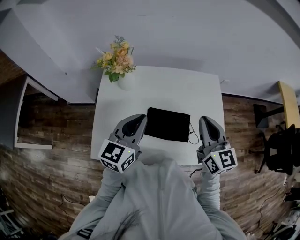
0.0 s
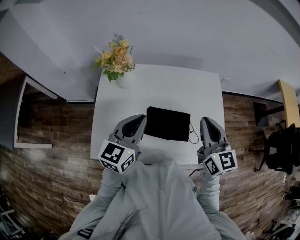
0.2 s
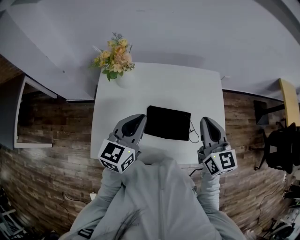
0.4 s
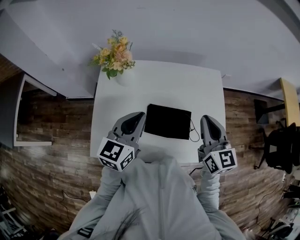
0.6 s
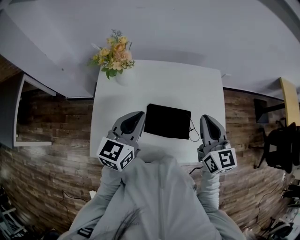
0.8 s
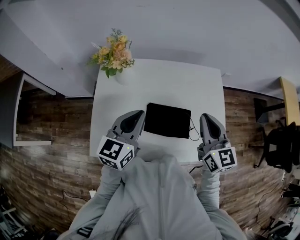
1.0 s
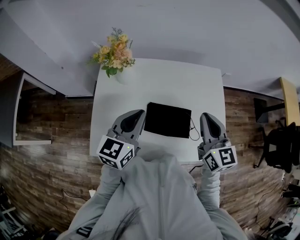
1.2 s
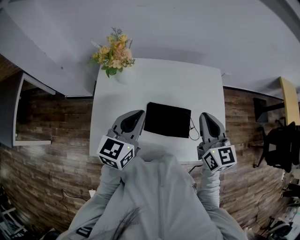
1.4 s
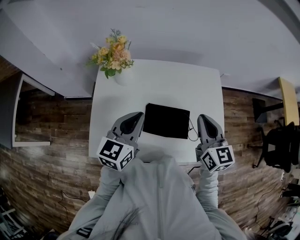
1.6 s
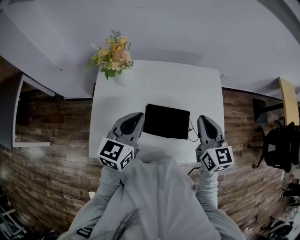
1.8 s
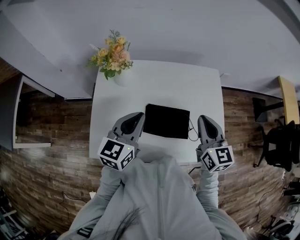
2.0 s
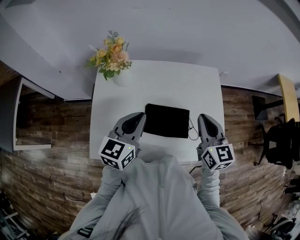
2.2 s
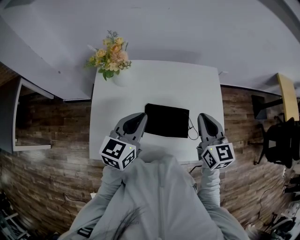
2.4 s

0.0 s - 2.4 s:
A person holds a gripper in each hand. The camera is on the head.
0.0 s - 2.4 s: There are only small adjustments of the grippers.

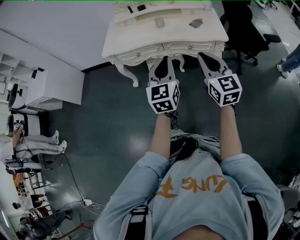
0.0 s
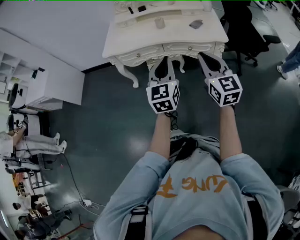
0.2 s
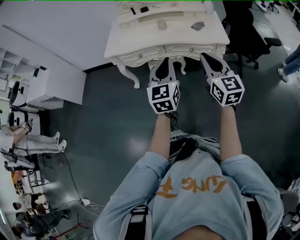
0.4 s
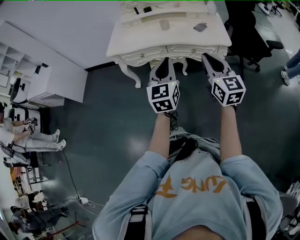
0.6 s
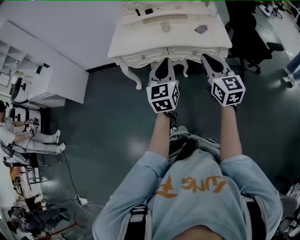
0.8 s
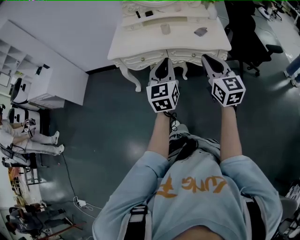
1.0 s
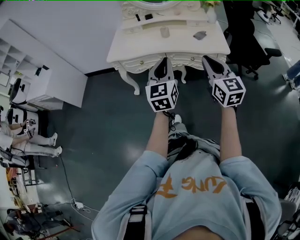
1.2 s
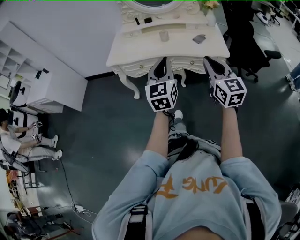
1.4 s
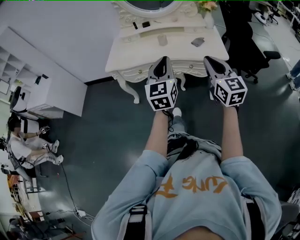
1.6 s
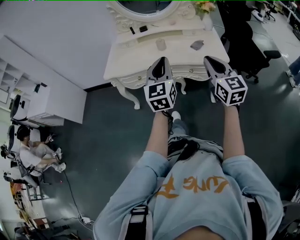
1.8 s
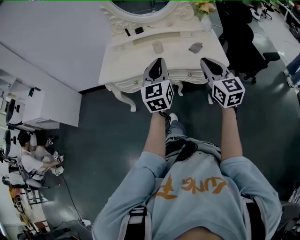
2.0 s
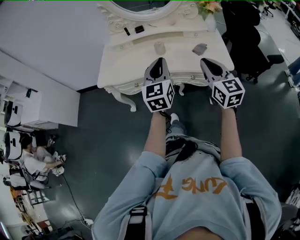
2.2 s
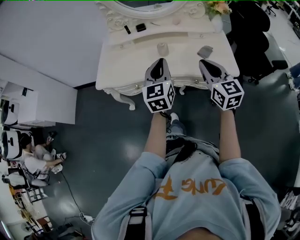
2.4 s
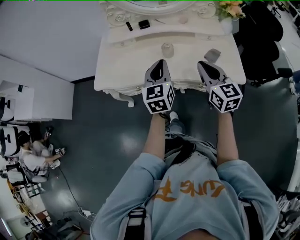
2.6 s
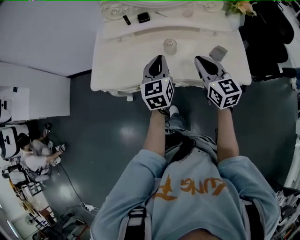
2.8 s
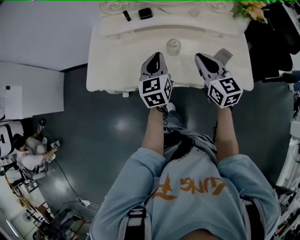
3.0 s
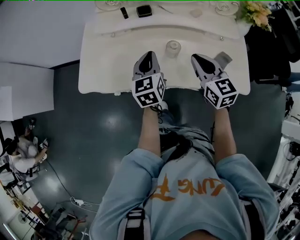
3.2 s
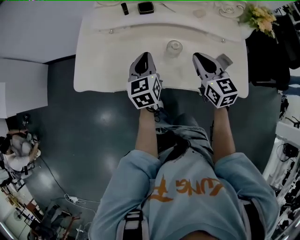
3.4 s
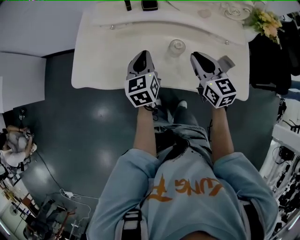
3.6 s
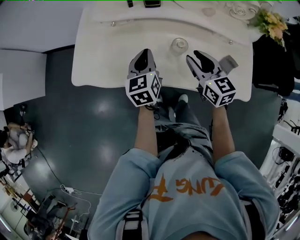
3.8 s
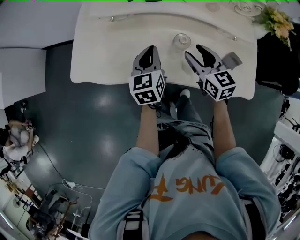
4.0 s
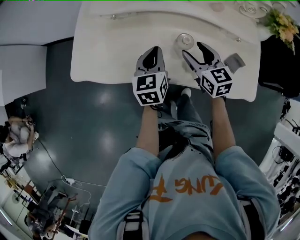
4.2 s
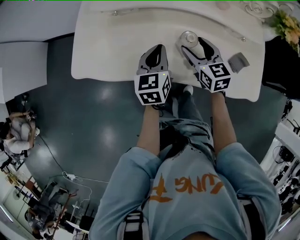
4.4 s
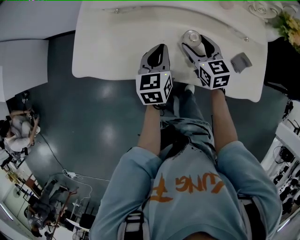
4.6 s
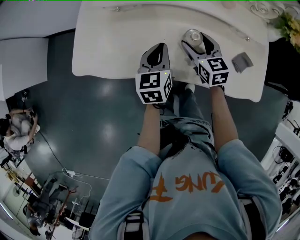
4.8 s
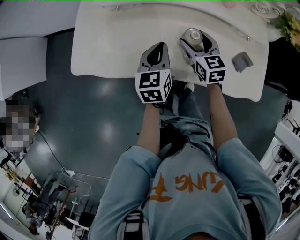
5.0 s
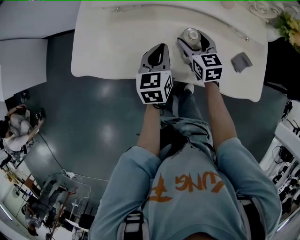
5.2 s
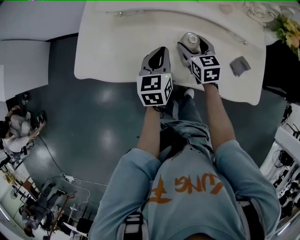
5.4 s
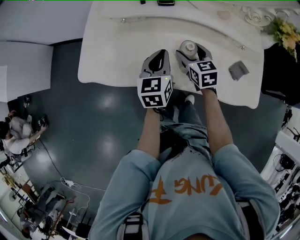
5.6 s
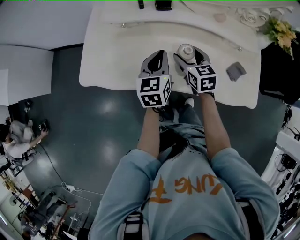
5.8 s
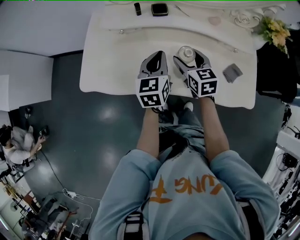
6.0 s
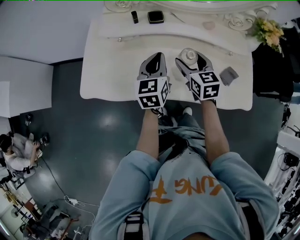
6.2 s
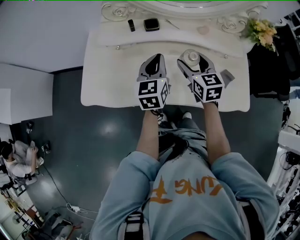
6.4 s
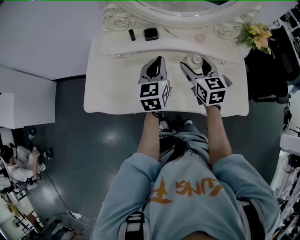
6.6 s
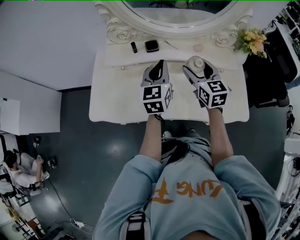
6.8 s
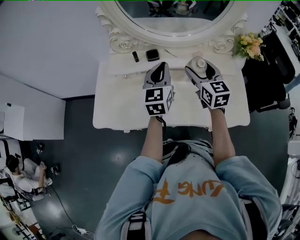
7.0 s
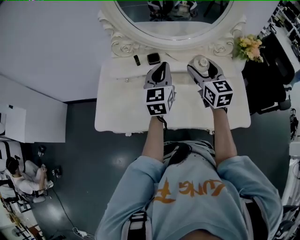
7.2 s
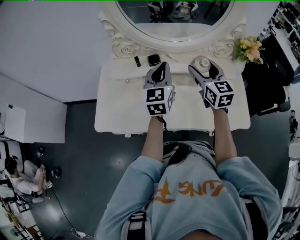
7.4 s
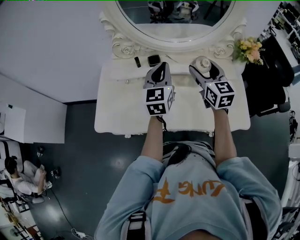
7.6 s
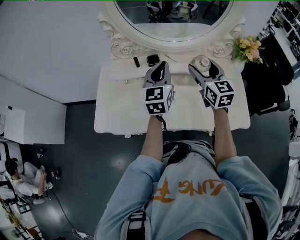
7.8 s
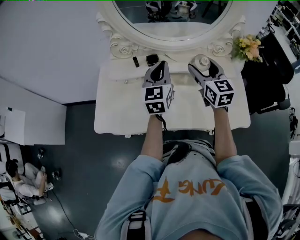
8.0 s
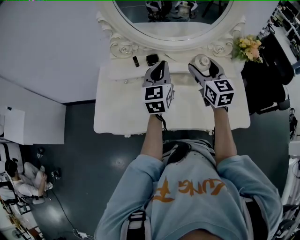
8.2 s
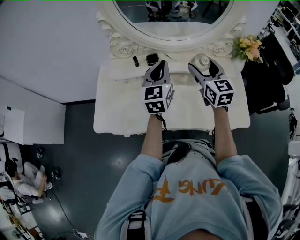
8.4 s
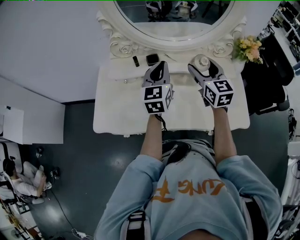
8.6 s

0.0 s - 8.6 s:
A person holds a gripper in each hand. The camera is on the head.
0.0 s - 1.4 s: The grippers stay close to where they were, moving slightly.
1.4 s - 2.8 s: Both grippers move forward, approximately 35 cm.
2.8 s - 4.4 s: The right gripper goes roughly 25 cm forward and downward, and opens up; the left gripper heads downward and forward, covering about 15 cm.
4.4 s - 5.8 s: The grippers make only small movements.
5.8 s - 7.2 s: The right gripper travels upward and to the right by roughly 25 cm, and turns by about 30 degrees. Meanwhile the left gripper goes some 15 cm upward and forward, and rotates roughly 20 degrees.
7.2 s - 8.6 s: The grippers make only small movements.

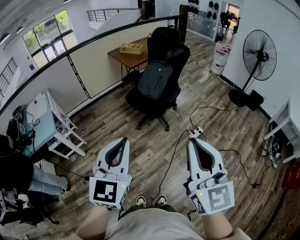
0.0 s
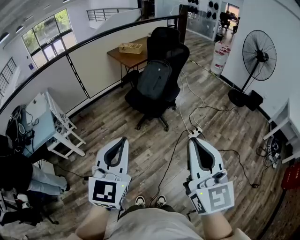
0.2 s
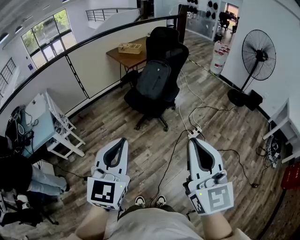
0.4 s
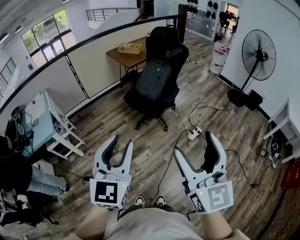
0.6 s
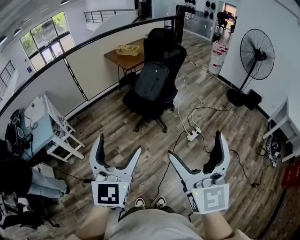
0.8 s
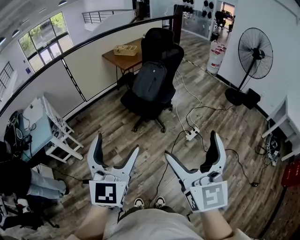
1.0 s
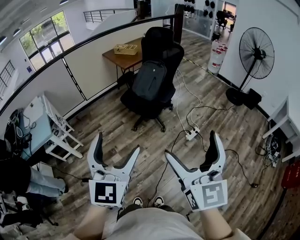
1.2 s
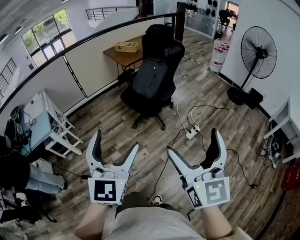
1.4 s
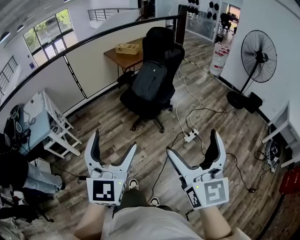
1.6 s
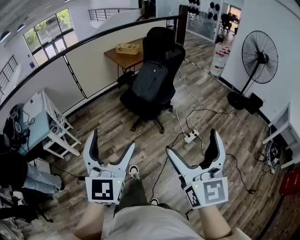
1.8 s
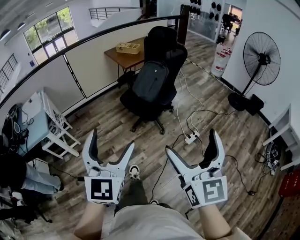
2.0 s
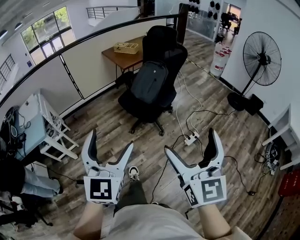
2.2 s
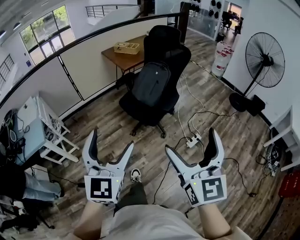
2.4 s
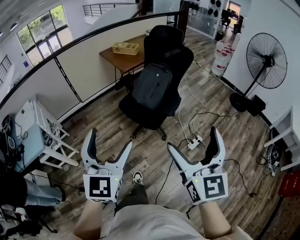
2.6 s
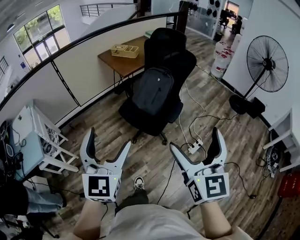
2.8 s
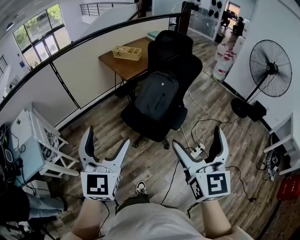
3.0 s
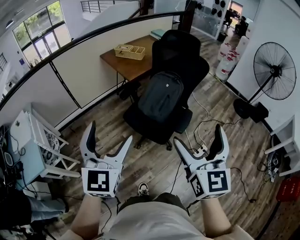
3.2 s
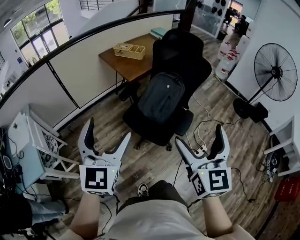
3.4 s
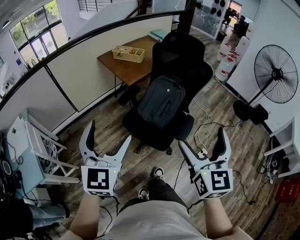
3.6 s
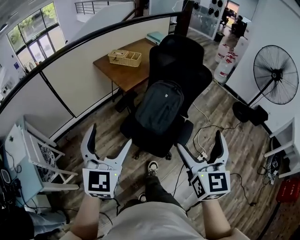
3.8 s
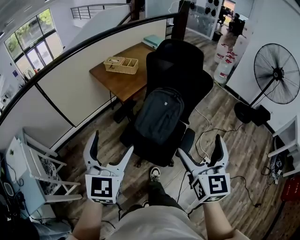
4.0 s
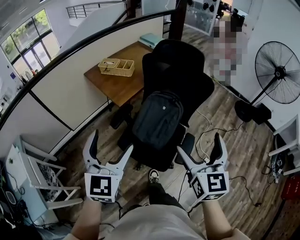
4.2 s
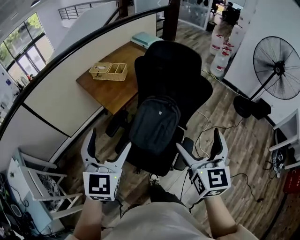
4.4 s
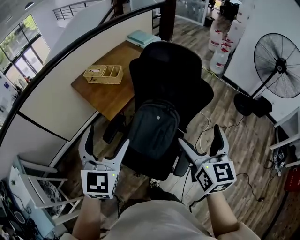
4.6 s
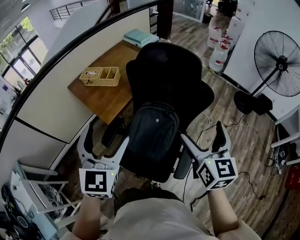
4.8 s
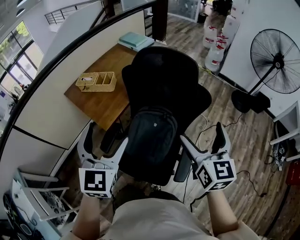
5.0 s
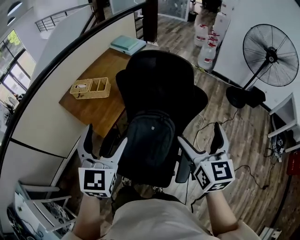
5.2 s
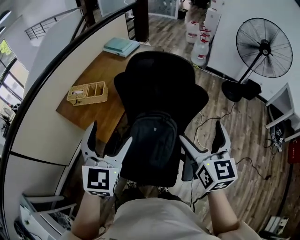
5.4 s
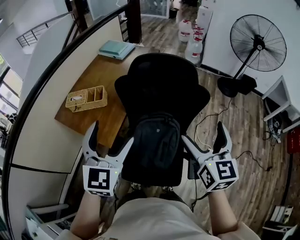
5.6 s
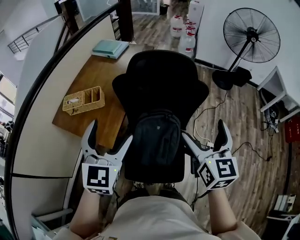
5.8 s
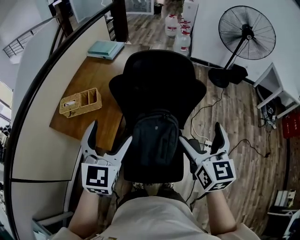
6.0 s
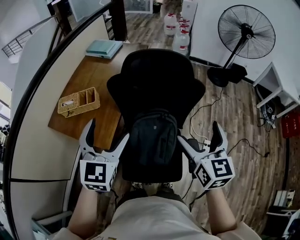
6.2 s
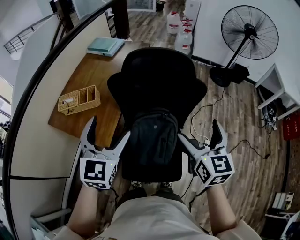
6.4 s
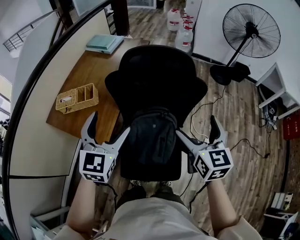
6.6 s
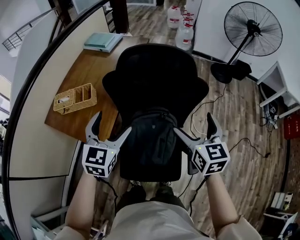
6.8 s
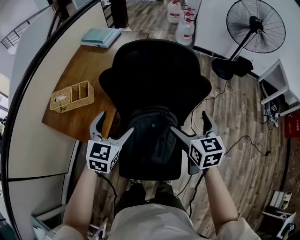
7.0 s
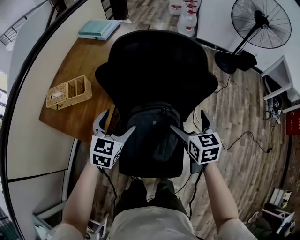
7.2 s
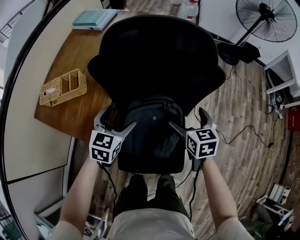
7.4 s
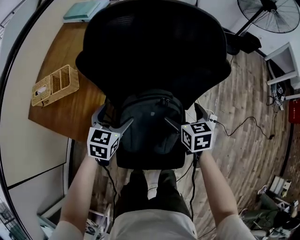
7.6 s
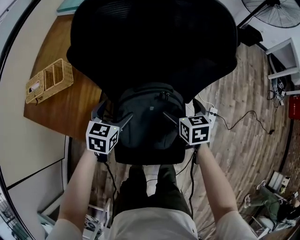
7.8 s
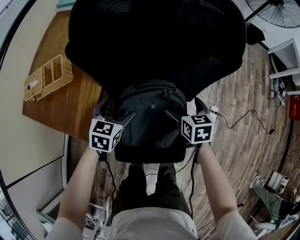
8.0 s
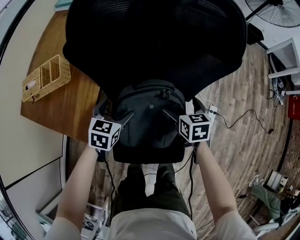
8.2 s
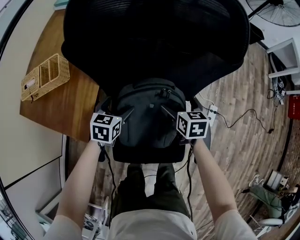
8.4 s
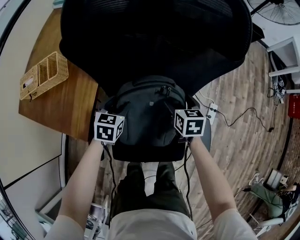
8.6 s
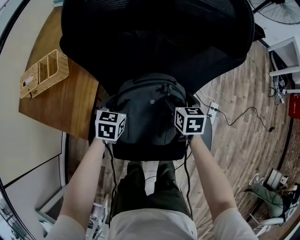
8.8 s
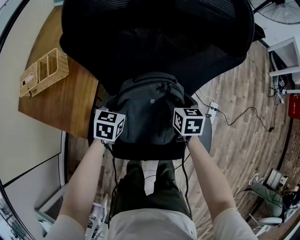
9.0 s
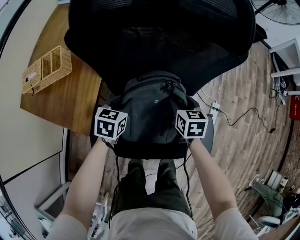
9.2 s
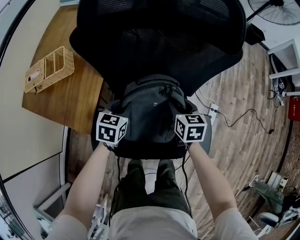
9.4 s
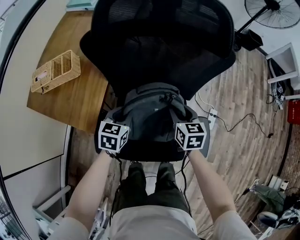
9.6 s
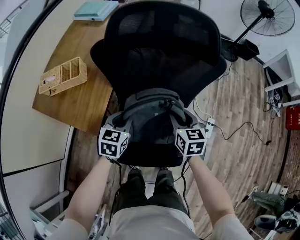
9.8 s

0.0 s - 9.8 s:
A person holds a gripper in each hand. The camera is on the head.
0.0 s - 1.4 s: The right gripper travels to the right by about 5 cm, and opens. The left gripper opens.
1.4 s - 2.8 s: Both grippers move forward, about 30 cm.
2.8 s - 4.2 s: The two grippers go about 40 cm forward.
4.2 s - 5.6 s: Both grippers move forward, approximately 30 cm. The left gripper turns by some 20 degrees, while the right gripper rotates some 20 degrees.
5.6 s - 7.0 s: Both grippers travel together downward and forward, roughly 20 cm.
7.0 s - 8.4 s: Both grippers move downward, approximately 30 cm. The left gripper changes its angle by roughly 30 degrees; the right gripper rotates approximately 20 degrees.
8.4 s - 9.8 s: Both grippers travel together upward and backward, about 15 cm. The right gripper closes up. Meanwhile the left gripper closes up.

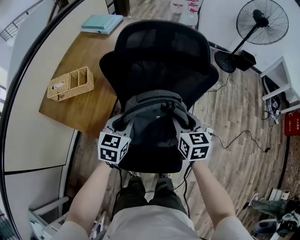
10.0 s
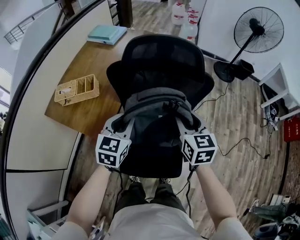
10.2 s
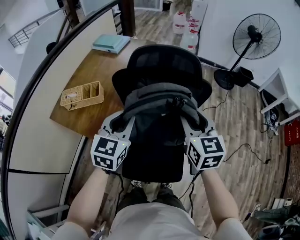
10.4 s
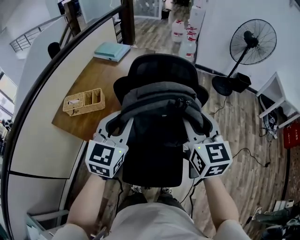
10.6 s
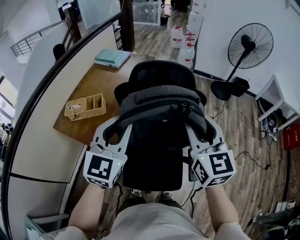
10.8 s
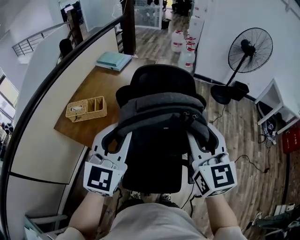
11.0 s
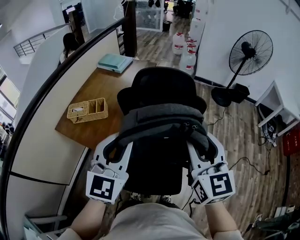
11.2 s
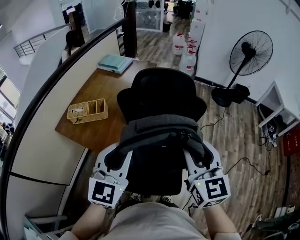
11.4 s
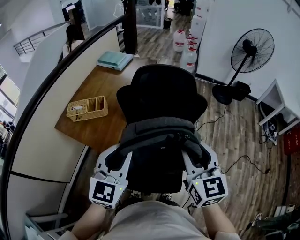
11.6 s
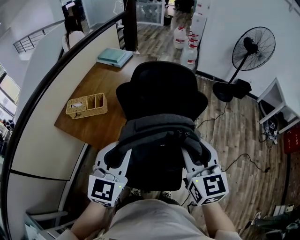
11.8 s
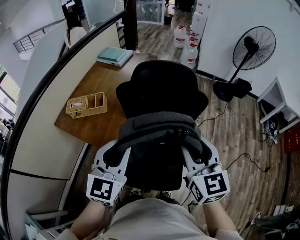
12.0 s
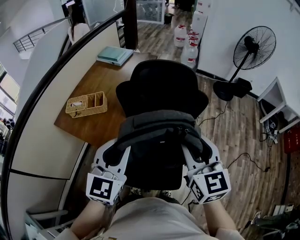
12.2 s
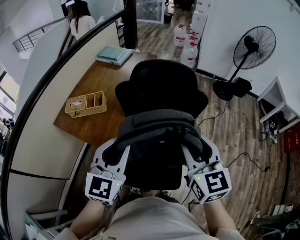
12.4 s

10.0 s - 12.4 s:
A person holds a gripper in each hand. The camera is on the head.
10.0 s - 11.2 s: Both grippers move upward and backward, about 35 cm. The left gripper turns by some 30 degrees. Meanwhile the right gripper turns by roughly 30 degrees.
11.2 s - 12.4 s: The left gripper travels downward by approximately 5 cm.
